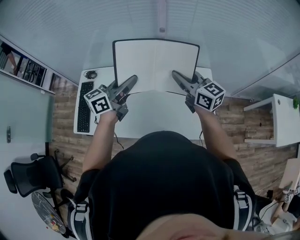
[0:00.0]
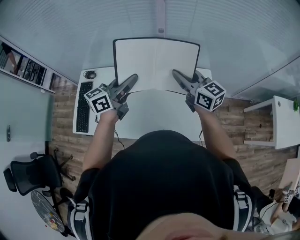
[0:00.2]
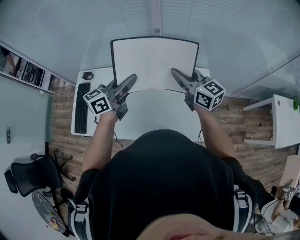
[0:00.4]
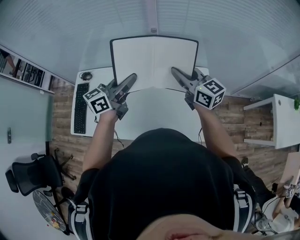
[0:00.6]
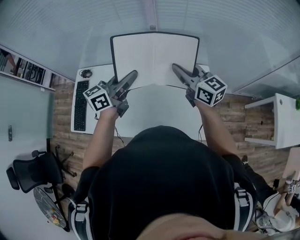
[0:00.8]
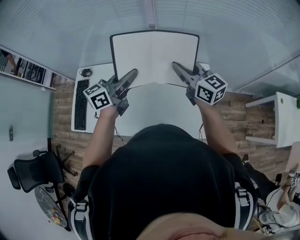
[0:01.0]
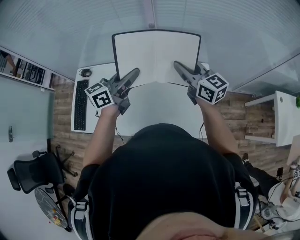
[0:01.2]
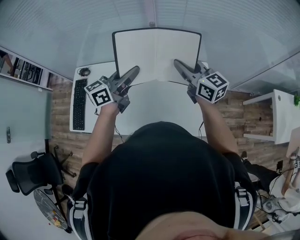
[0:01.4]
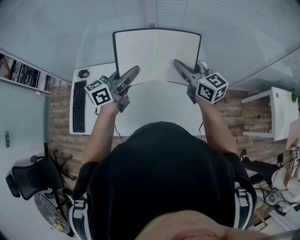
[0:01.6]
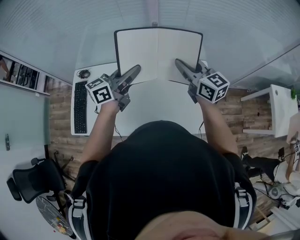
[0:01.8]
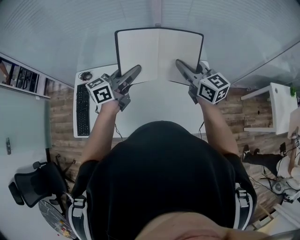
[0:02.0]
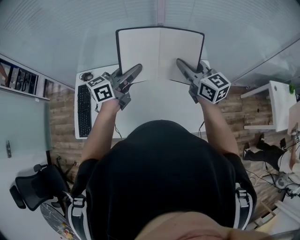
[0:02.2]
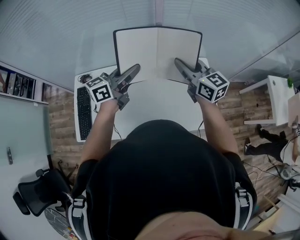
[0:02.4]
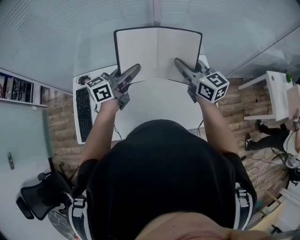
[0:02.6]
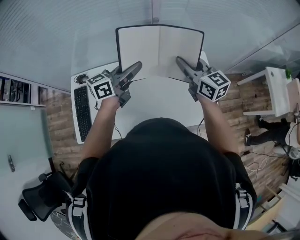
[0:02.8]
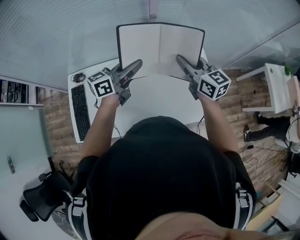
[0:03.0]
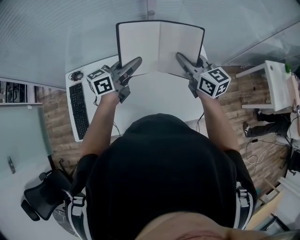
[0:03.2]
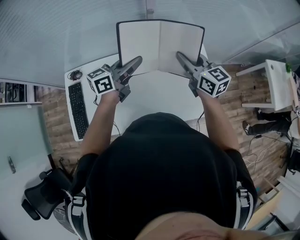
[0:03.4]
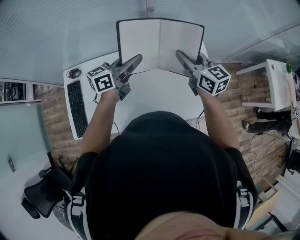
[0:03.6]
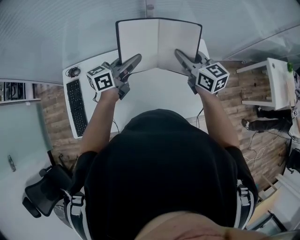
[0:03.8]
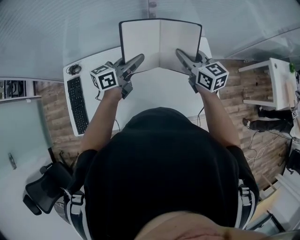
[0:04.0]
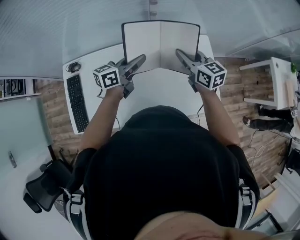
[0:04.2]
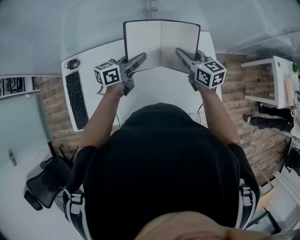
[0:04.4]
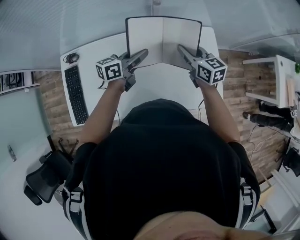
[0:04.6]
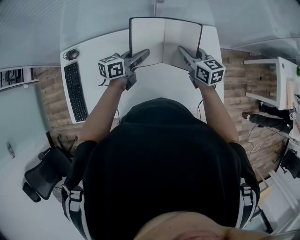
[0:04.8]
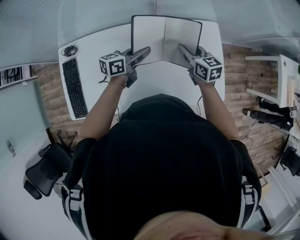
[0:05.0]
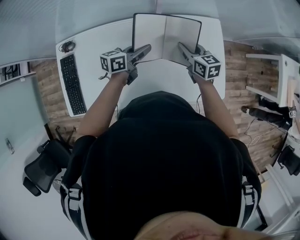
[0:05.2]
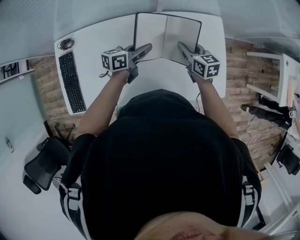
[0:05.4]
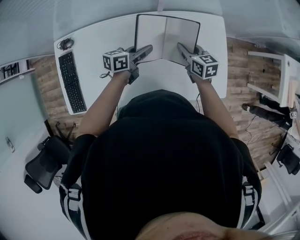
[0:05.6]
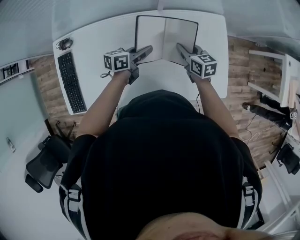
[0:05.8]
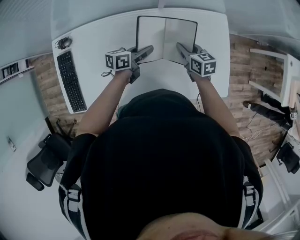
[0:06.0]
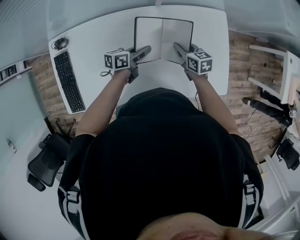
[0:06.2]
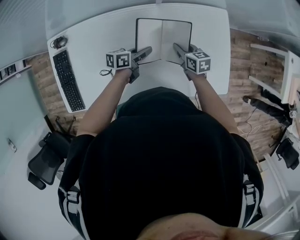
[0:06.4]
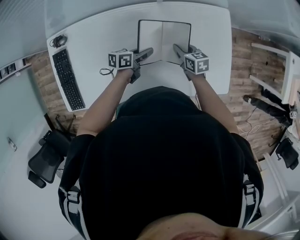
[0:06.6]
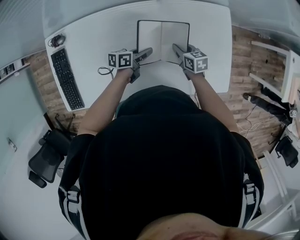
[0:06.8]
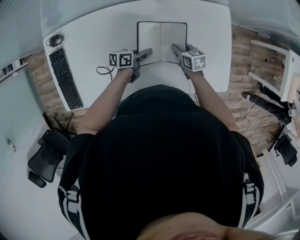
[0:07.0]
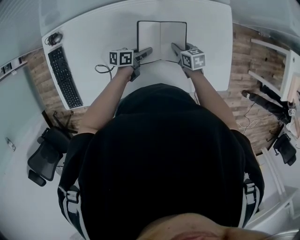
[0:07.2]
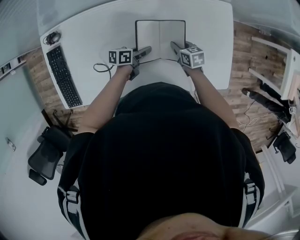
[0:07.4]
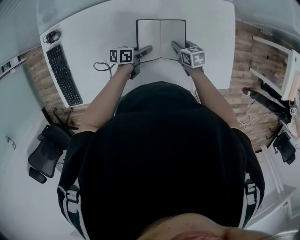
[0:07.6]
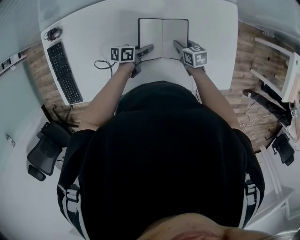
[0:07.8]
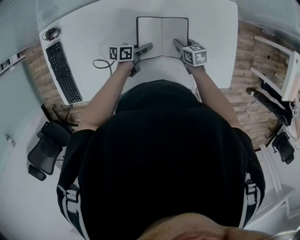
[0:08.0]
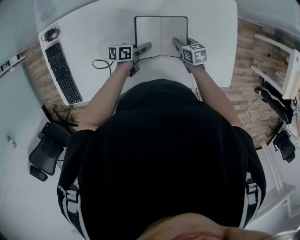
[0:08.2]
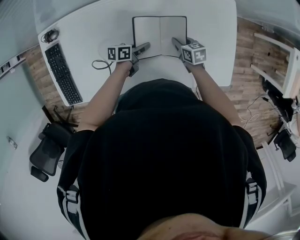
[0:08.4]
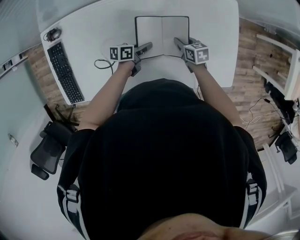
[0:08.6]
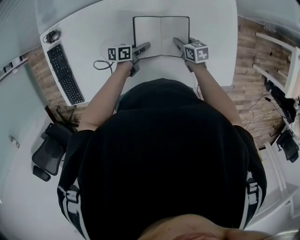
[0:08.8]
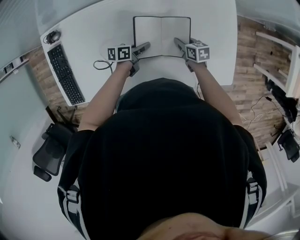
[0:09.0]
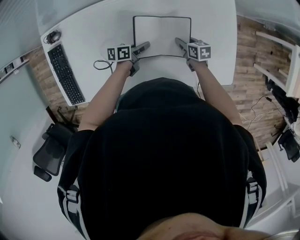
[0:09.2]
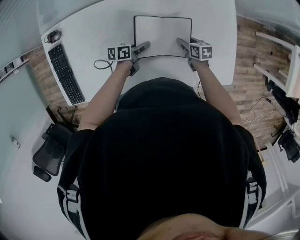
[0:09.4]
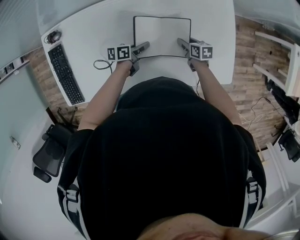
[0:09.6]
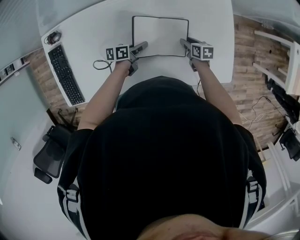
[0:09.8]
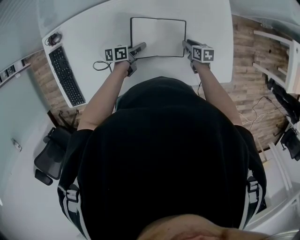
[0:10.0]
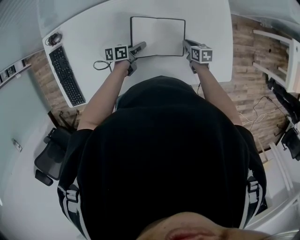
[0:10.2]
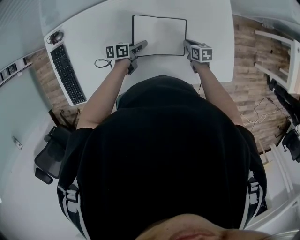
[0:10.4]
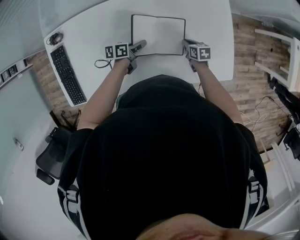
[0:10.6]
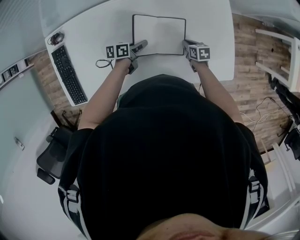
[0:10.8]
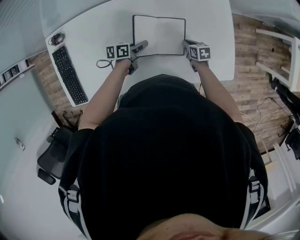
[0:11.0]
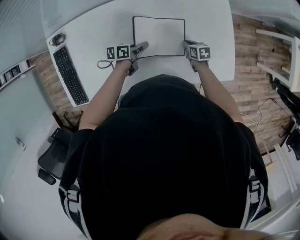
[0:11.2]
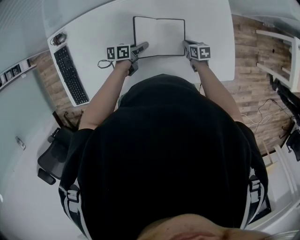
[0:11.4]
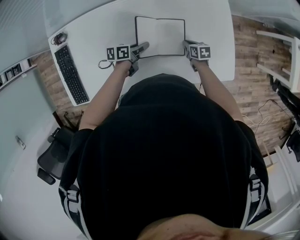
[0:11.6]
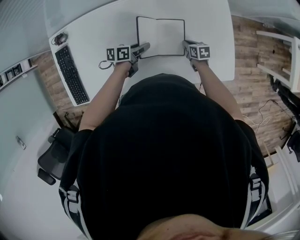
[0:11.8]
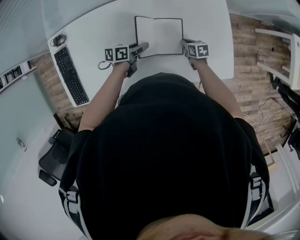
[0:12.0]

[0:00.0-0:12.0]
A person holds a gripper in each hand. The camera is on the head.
0:00.0 to 0:01.6: The left gripper moves approximately 5 cm.
0:01.6 to 0:03.0: The two grippers go about 5 cm to the left.
0:03.0 to 0:04.4: Both grippers move downward, roughly 15 cm.
0:04.4 to 0:06.0: The two grippers go roughly 20 cm downward.
0:06.0 to 0:07.6: The two grippers go roughly 15 cm downward.
0:07.6 to 0:09.0: The grippers stay close to where they were, moving slightly.
0:09.0 to 0:10.4: The right gripper heads to the right, covering some 5 cm.
0:10.4 to 0:12.0: The grippers move only a little.

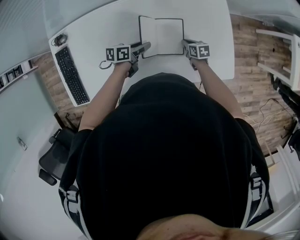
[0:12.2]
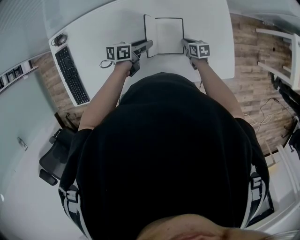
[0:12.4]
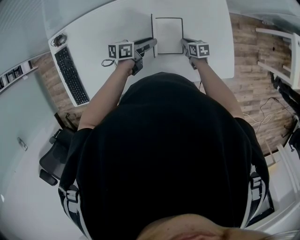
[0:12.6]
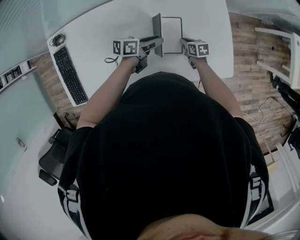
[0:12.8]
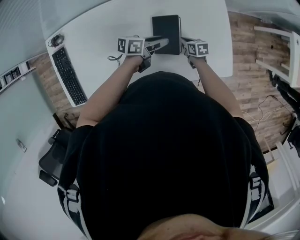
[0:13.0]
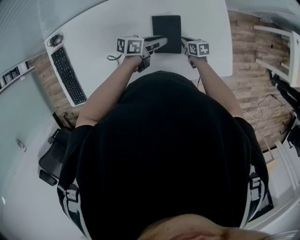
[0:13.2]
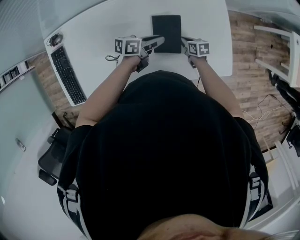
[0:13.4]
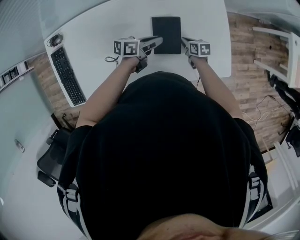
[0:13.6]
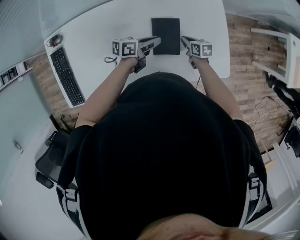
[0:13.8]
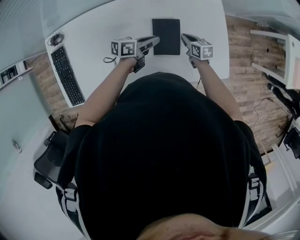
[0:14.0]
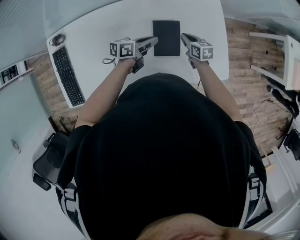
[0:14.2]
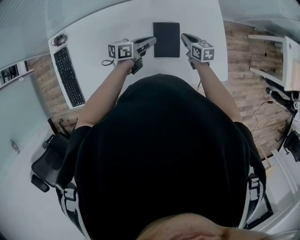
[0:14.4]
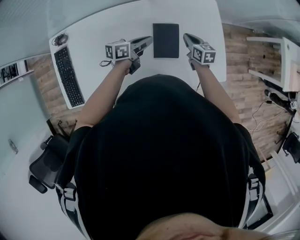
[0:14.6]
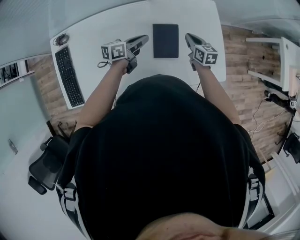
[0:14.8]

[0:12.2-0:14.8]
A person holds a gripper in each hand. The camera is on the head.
0:12.2 to 0:13.4: The left gripper shifts about 5 cm to the right.
0:13.4 to 0:14.8: The left gripper moves about 5 cm. The right gripper goes some 15 cm upward, and rotates about 20 degrees.

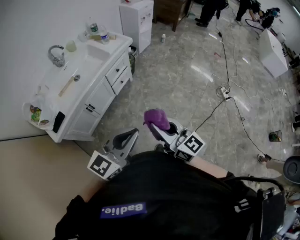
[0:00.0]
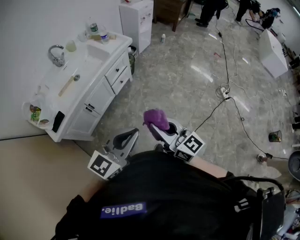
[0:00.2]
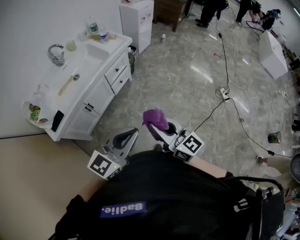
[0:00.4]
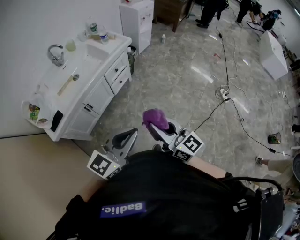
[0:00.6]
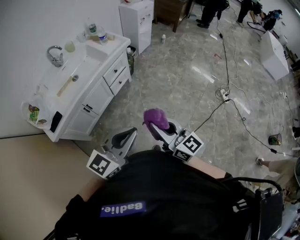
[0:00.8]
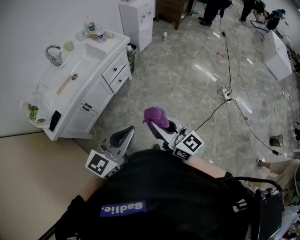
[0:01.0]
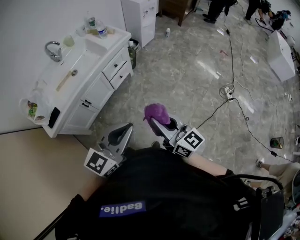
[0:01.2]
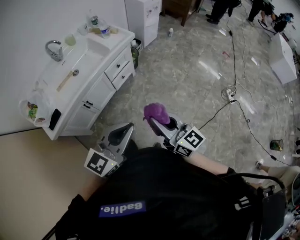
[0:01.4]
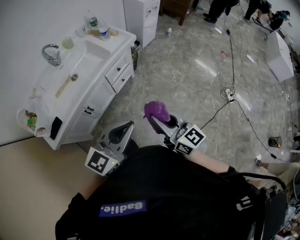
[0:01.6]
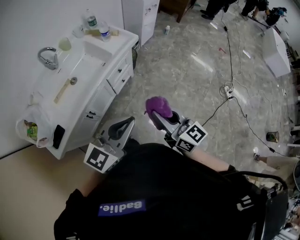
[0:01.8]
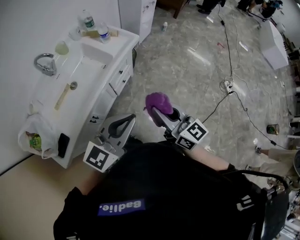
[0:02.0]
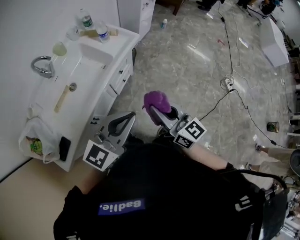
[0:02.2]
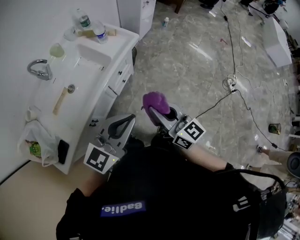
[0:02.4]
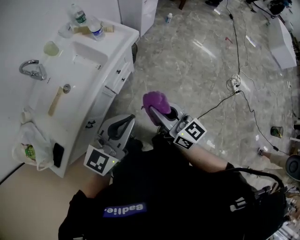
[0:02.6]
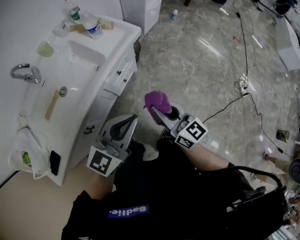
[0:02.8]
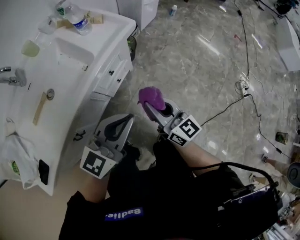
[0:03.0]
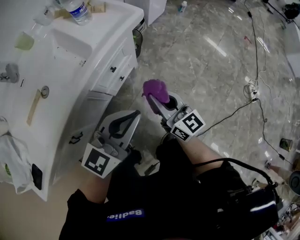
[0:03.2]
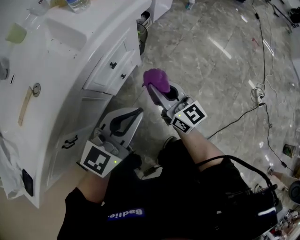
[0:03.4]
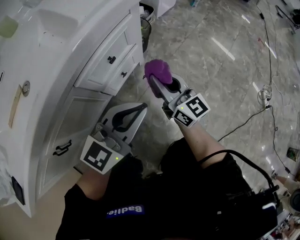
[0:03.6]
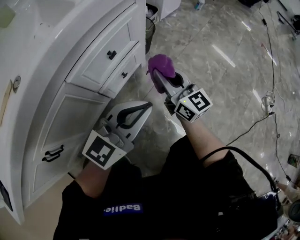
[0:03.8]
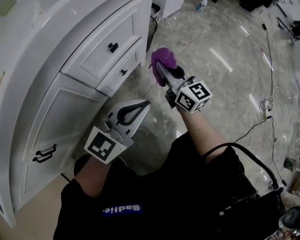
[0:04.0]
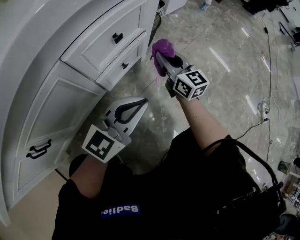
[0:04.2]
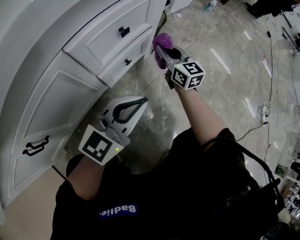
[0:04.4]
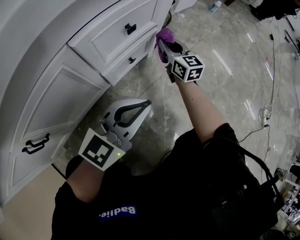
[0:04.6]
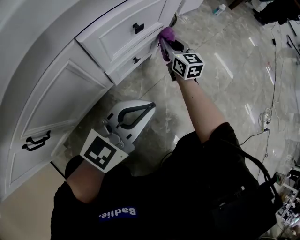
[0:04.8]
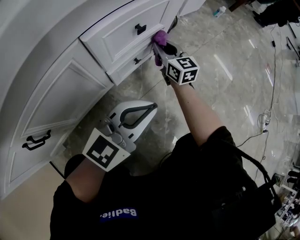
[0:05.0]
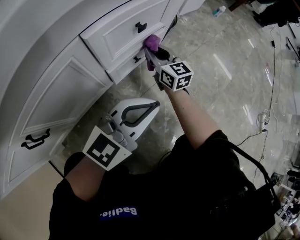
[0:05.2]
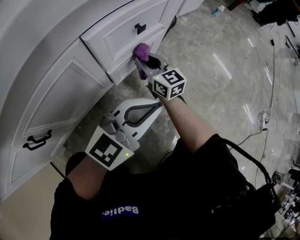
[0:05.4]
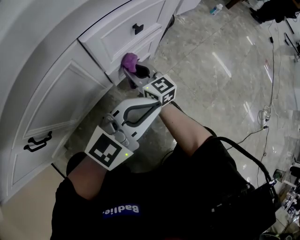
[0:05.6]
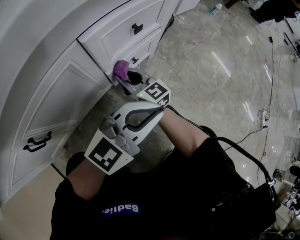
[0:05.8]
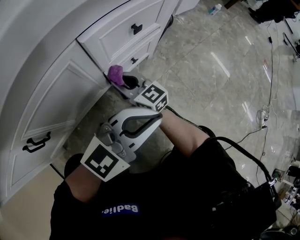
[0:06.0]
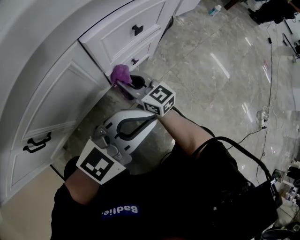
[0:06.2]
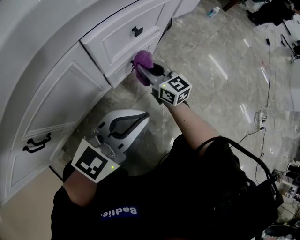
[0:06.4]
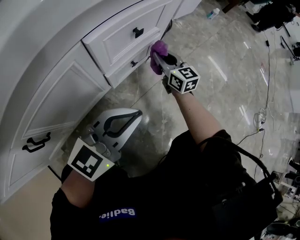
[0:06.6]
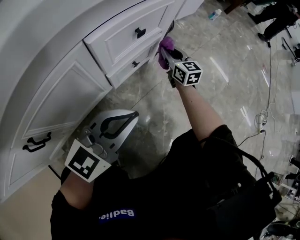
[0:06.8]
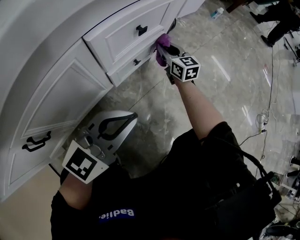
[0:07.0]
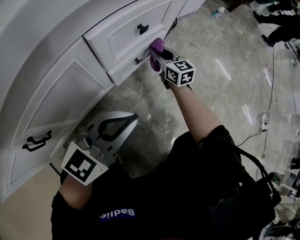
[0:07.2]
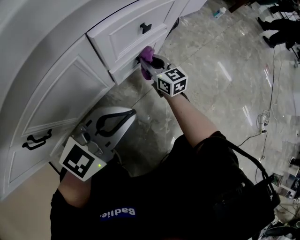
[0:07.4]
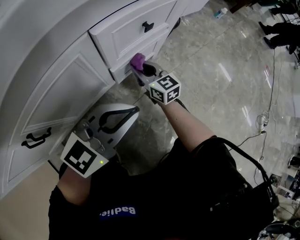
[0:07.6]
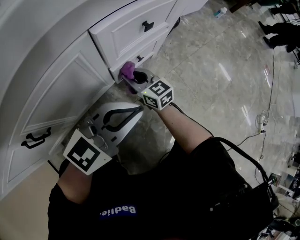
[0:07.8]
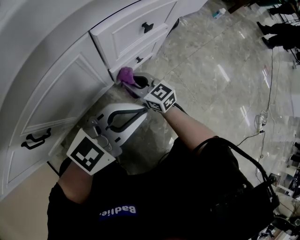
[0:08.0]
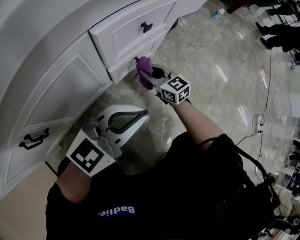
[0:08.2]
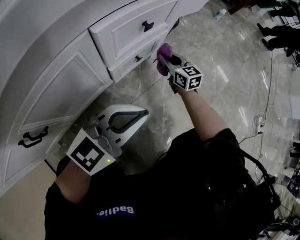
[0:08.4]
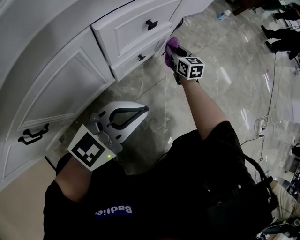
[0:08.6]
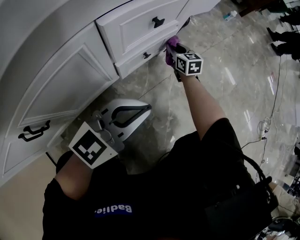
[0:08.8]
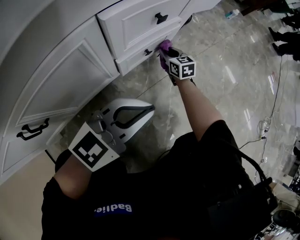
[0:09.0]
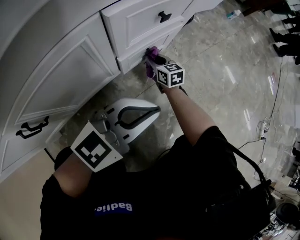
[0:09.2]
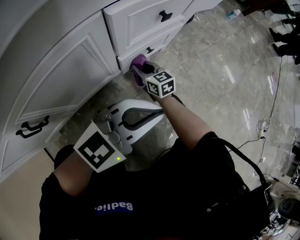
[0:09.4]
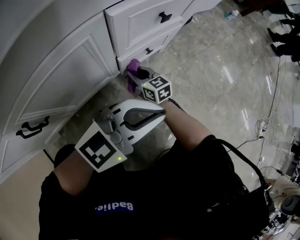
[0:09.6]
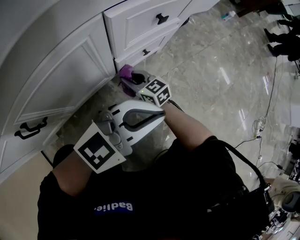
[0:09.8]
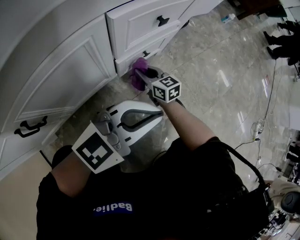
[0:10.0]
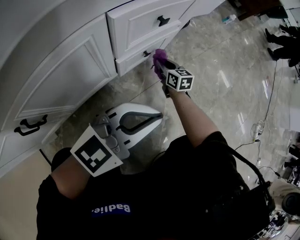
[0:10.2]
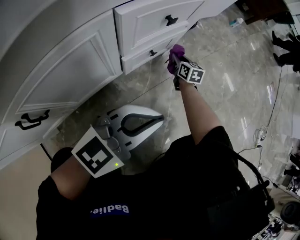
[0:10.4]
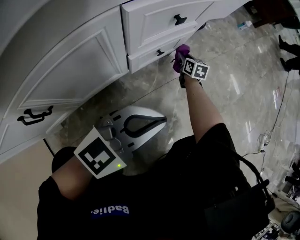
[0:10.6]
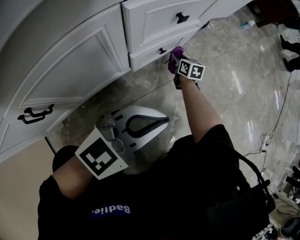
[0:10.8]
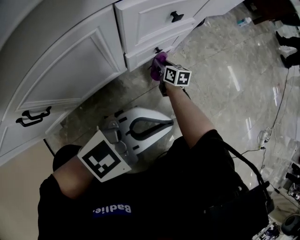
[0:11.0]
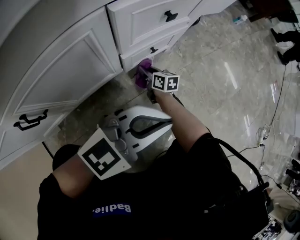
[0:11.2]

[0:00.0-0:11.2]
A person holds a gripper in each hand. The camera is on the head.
0:00.0 to 0:01.6: Both grippers move forward, some 15 cm.
0:01.6 to 0:03.2: The grippers both shift downward and forward by about 50 cm.
0:03.2 to 0:04.8: The right gripper moves downward and forward, about 40 cm, while the left gripper goes roughly 30 cm downward.
0:04.8 to 0:06.4: The right gripper travels backward and to the left by approximately 15 cm.
0:06.4 to 0:08.0: The right gripper goes roughly 10 cm to the left, backward and downward.
0:08.0 to 0:09.6: The right gripper shifts approximately 10 cm downward, and goes forward and returns, about 20 cm each way.
0:09.6 to 0:11.2: The right gripper is displaced downward by approximately 5 cm, and changes its angle by approximately 20 degrees.
